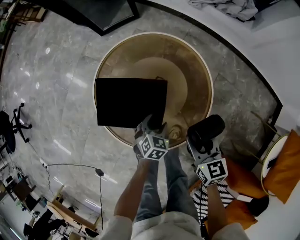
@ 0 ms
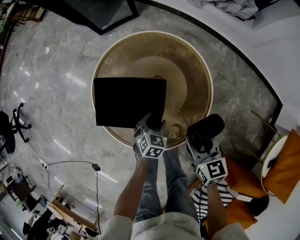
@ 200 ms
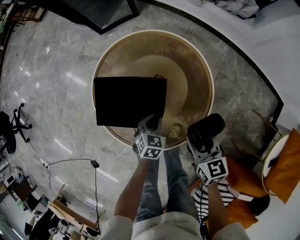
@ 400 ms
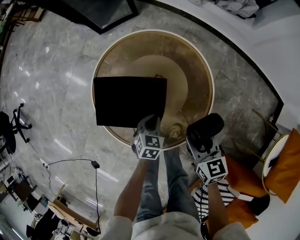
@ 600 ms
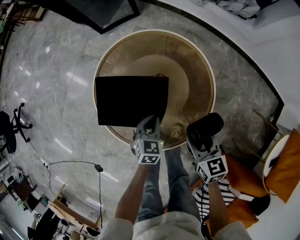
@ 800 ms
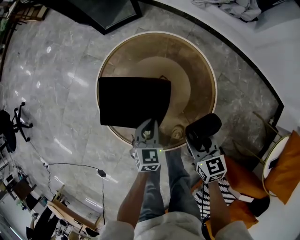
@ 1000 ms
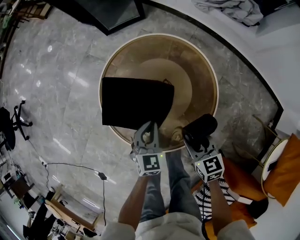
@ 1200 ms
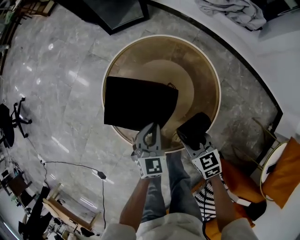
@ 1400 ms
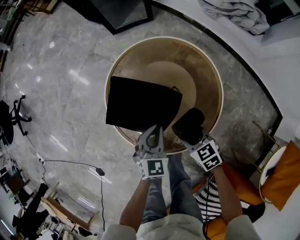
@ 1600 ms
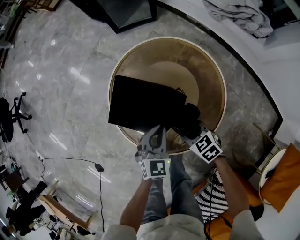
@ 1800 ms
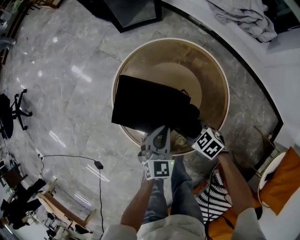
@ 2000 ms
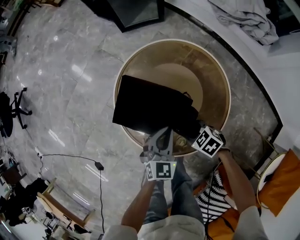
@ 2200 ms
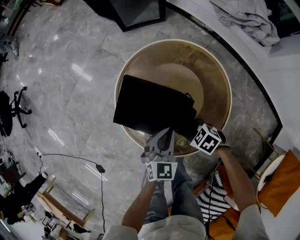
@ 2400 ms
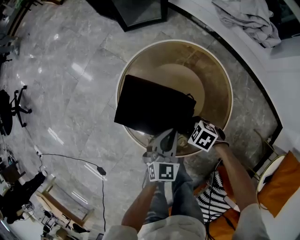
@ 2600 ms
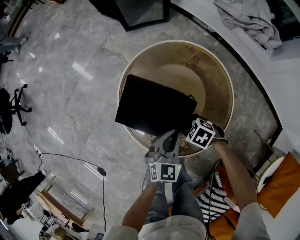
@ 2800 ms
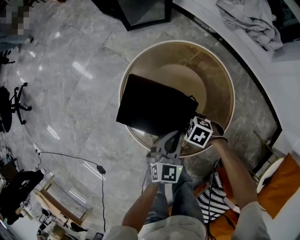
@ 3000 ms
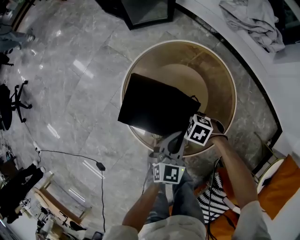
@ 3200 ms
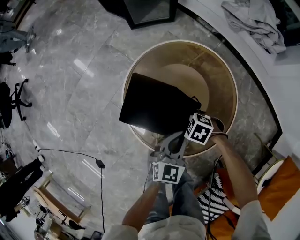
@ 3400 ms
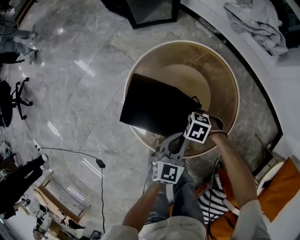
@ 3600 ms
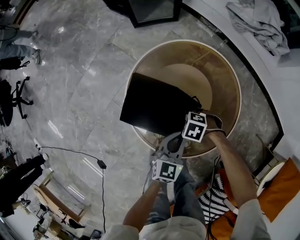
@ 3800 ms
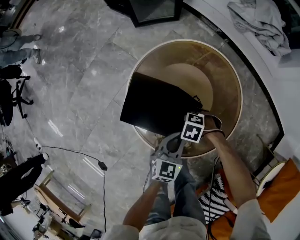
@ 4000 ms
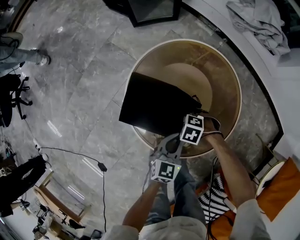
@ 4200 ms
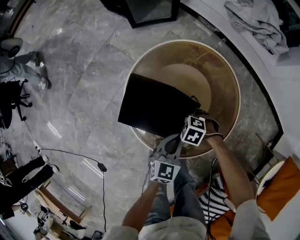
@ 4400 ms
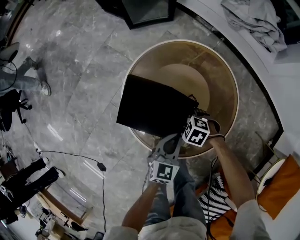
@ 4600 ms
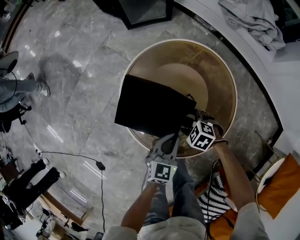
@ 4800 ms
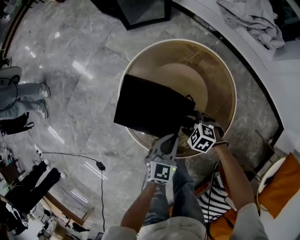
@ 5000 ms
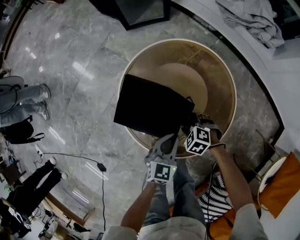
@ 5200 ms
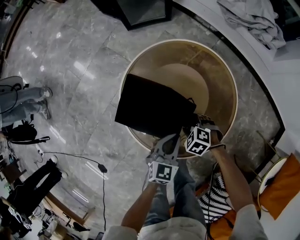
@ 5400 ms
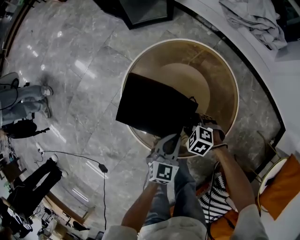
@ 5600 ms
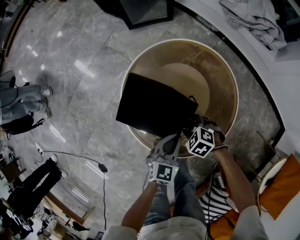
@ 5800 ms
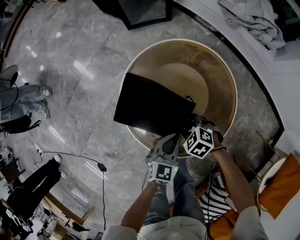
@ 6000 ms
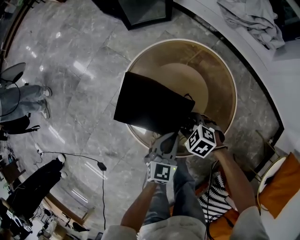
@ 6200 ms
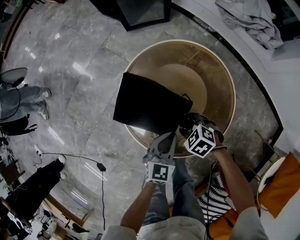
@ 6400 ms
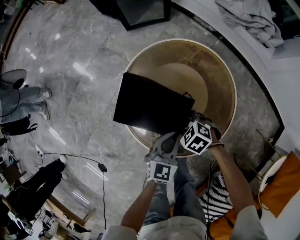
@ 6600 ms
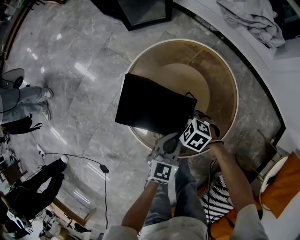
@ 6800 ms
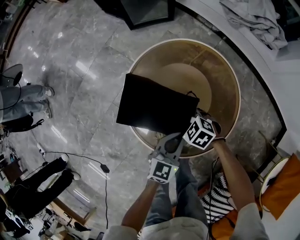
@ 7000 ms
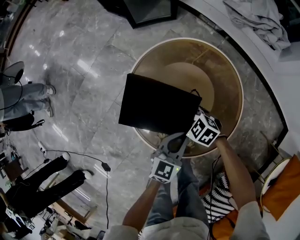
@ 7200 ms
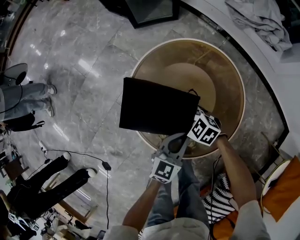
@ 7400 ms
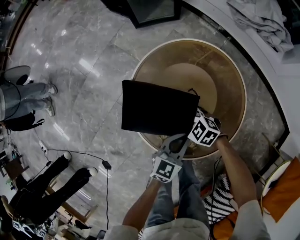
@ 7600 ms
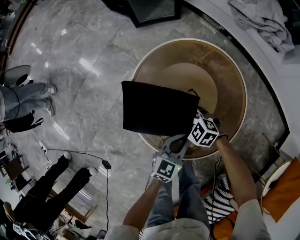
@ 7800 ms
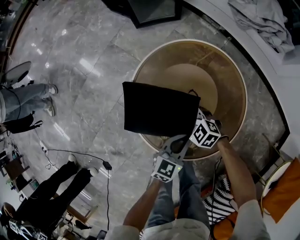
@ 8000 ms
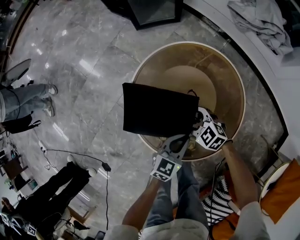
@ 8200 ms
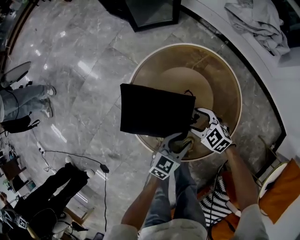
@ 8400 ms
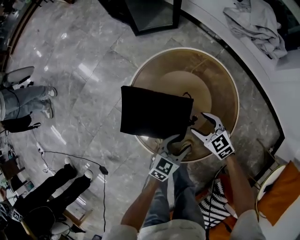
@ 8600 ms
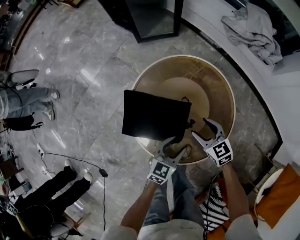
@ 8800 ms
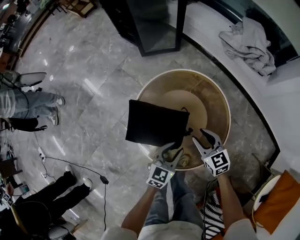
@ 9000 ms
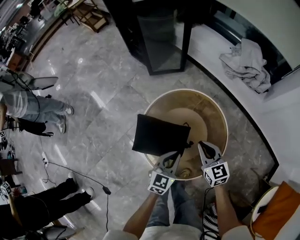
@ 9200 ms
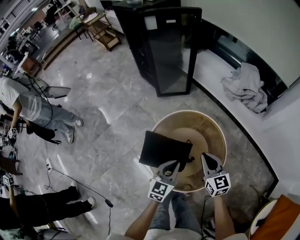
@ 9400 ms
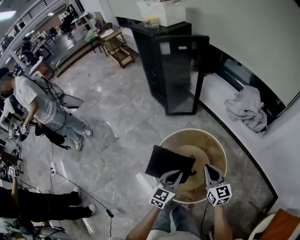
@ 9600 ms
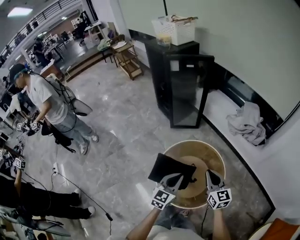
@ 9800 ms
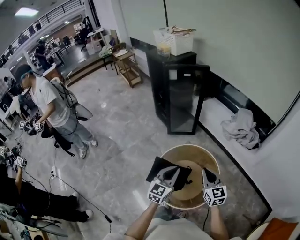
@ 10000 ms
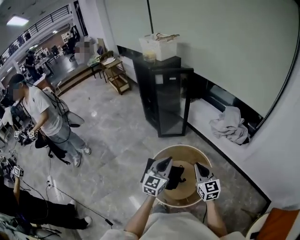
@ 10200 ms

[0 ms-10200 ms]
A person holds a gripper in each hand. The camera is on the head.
0 ms to 1400 ms: The left gripper travels upward and to the left by about 15 cm, turns by about 30 degrees, and closes its fingers. Meanwhile the right gripper is displaced to the left by about 5 cm, and rotates roughly 20 degrees.
1400 ms to 3000 ms: The right gripper moves about 15 cm, and changes its angle by approximately 50 degrees.
3000 ms to 4400 ms: The right gripper changes place by roughly 5 cm.
4400 ms to 5800 ms: The grippers move only a little.
5800 ms to 7200 ms: The right gripper goes some 5 cm forward.
7200 ms to 8800 ms: The right gripper shifts roughly 10 cm to the right and upward, and turns by some 30 degrees. Meanwhile the left gripper opens.
8800 ms to 10200 ms: Both grippers move upward, roughly 40 cm. The left gripper rotates about 40 degrees, and closes up. Meanwhile the right gripper rotates approximately 30 degrees, and closes up.

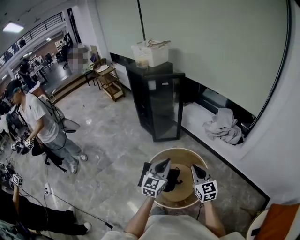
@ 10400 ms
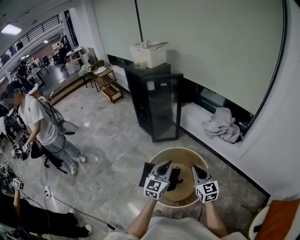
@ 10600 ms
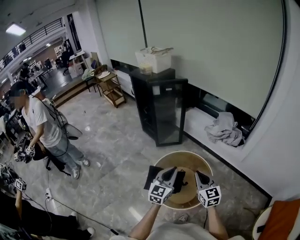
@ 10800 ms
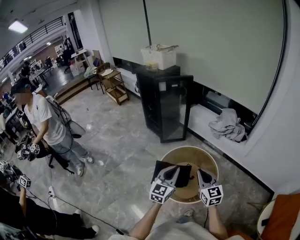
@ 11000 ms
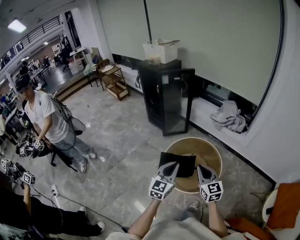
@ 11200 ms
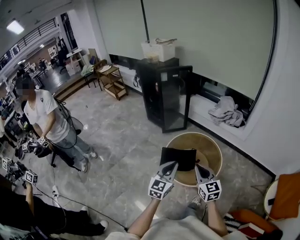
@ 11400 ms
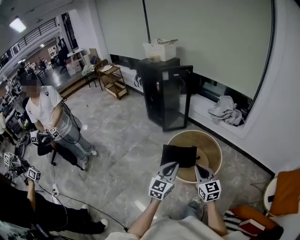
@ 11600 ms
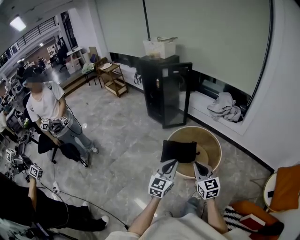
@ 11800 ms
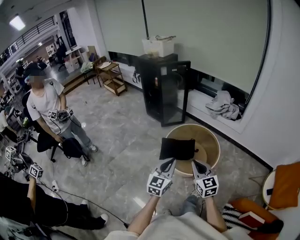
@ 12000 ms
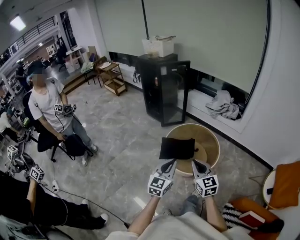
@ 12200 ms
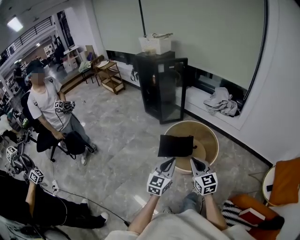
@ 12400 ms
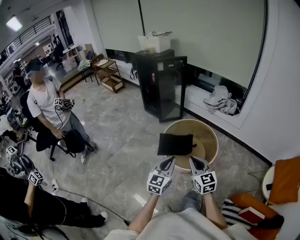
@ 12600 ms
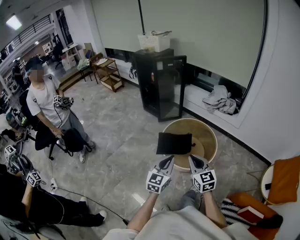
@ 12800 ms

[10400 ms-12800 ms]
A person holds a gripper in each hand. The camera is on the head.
10400 ms to 11600 ms: Both grippers move backward and to the left, approximately 30 cm.
11600 ms to 12800 ms: The left gripper is displaced backward by roughly 5 cm.

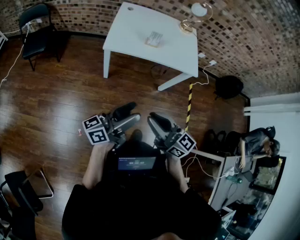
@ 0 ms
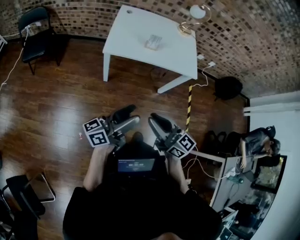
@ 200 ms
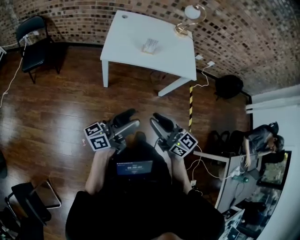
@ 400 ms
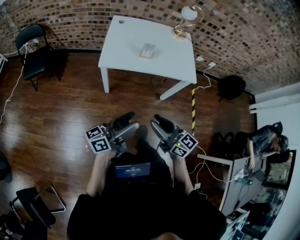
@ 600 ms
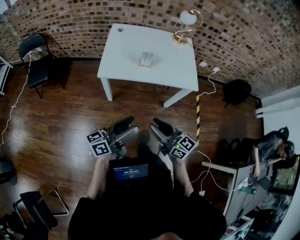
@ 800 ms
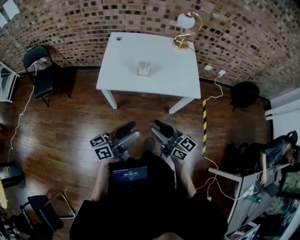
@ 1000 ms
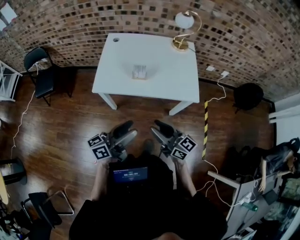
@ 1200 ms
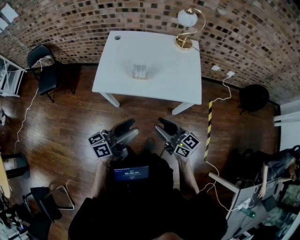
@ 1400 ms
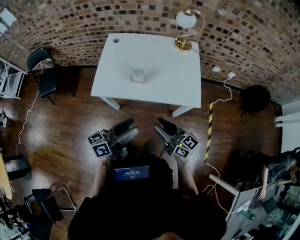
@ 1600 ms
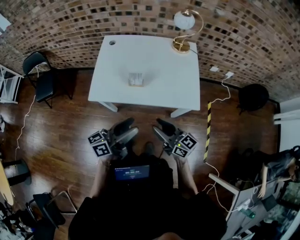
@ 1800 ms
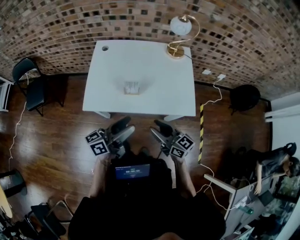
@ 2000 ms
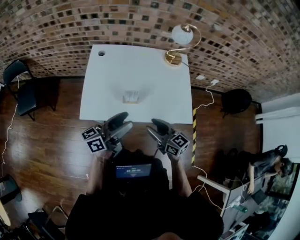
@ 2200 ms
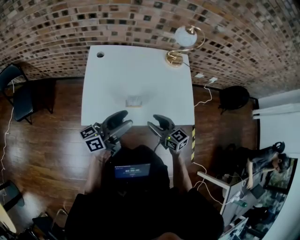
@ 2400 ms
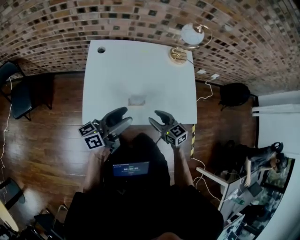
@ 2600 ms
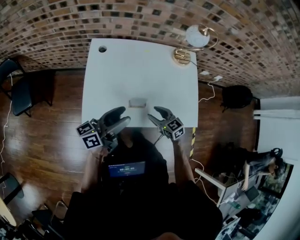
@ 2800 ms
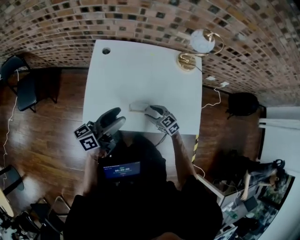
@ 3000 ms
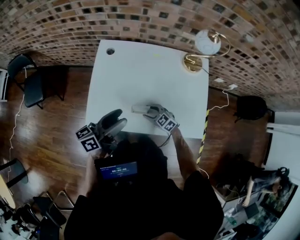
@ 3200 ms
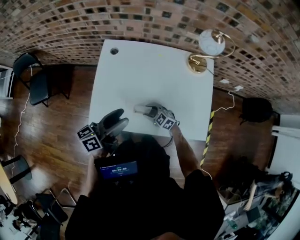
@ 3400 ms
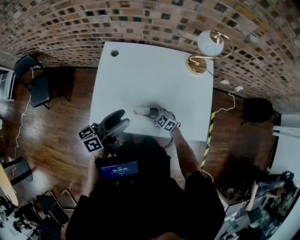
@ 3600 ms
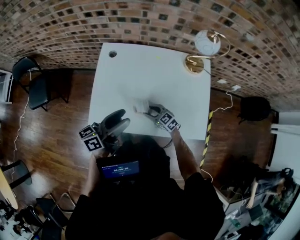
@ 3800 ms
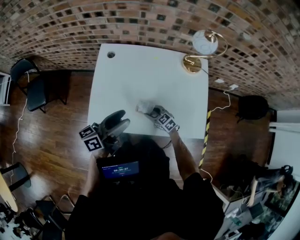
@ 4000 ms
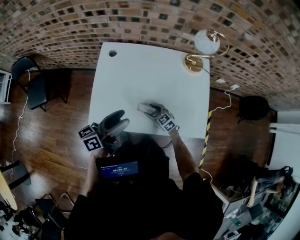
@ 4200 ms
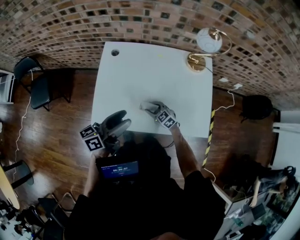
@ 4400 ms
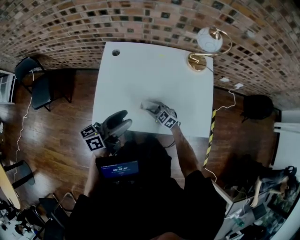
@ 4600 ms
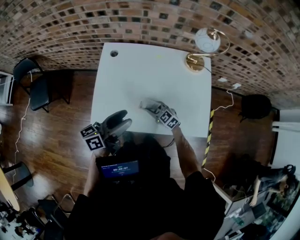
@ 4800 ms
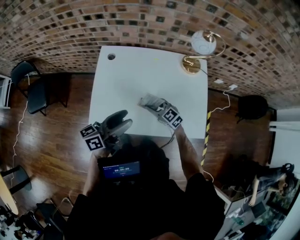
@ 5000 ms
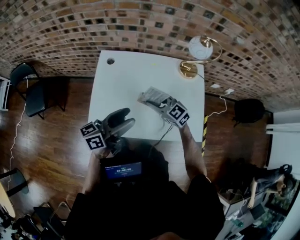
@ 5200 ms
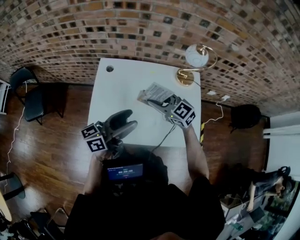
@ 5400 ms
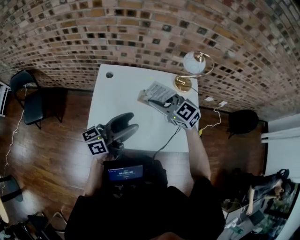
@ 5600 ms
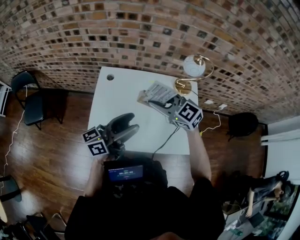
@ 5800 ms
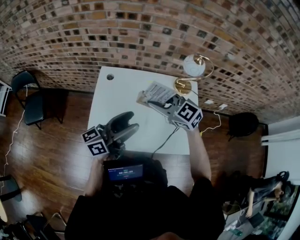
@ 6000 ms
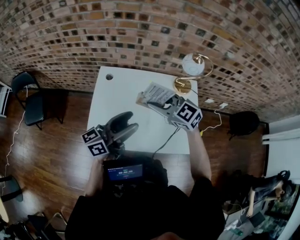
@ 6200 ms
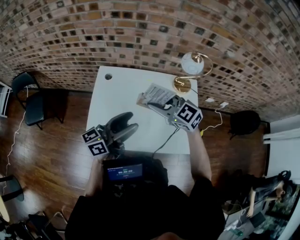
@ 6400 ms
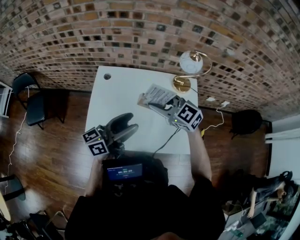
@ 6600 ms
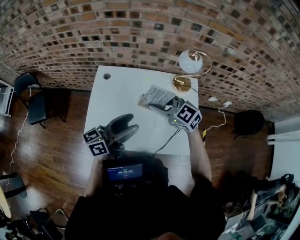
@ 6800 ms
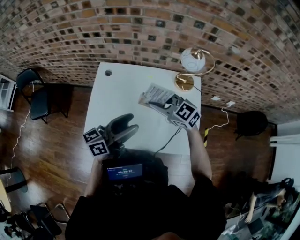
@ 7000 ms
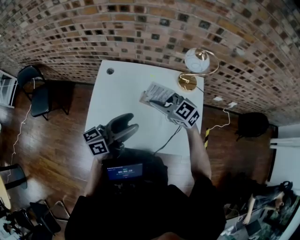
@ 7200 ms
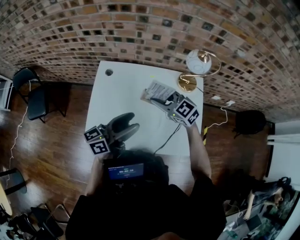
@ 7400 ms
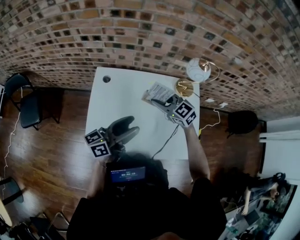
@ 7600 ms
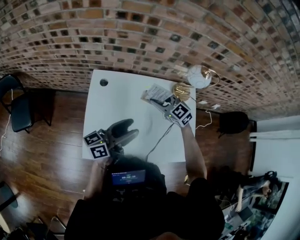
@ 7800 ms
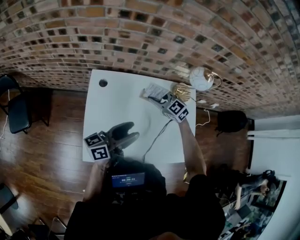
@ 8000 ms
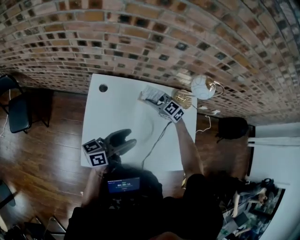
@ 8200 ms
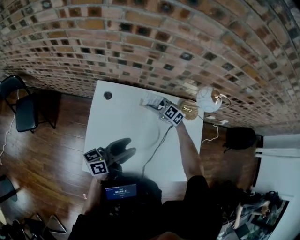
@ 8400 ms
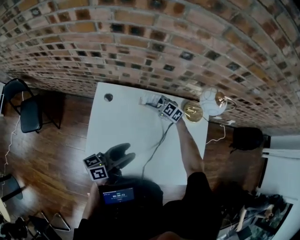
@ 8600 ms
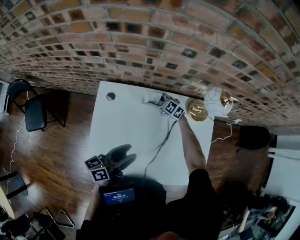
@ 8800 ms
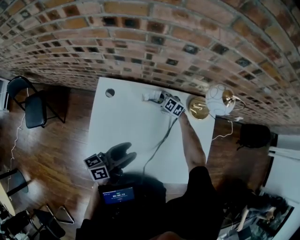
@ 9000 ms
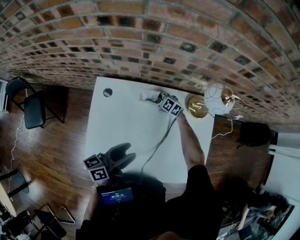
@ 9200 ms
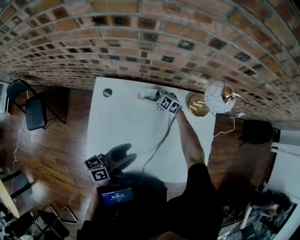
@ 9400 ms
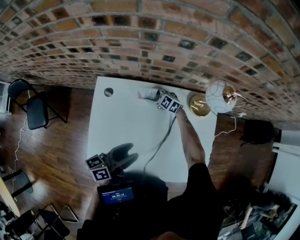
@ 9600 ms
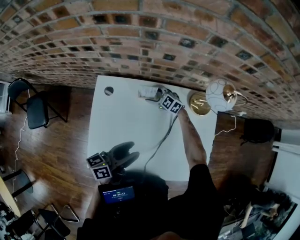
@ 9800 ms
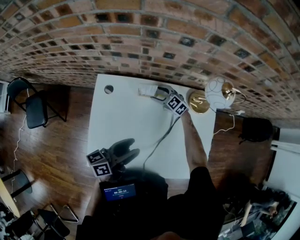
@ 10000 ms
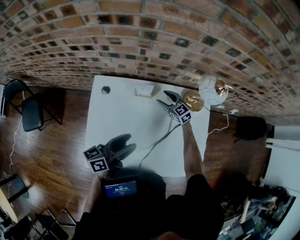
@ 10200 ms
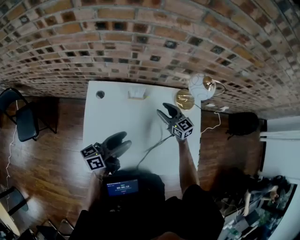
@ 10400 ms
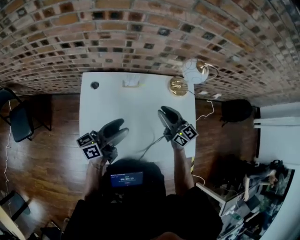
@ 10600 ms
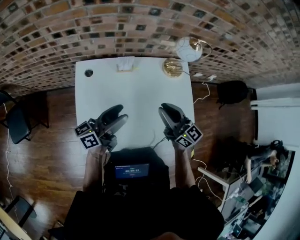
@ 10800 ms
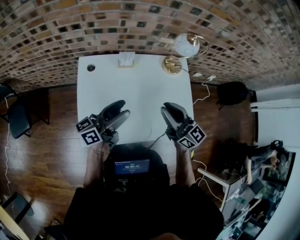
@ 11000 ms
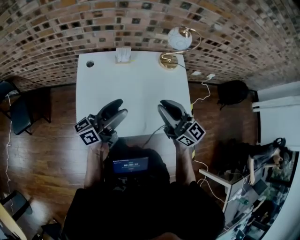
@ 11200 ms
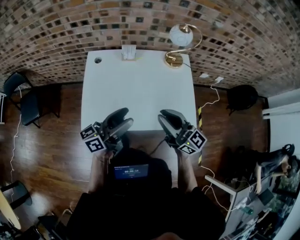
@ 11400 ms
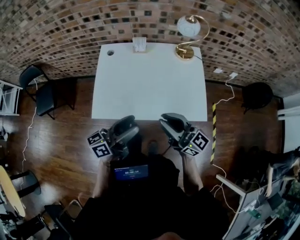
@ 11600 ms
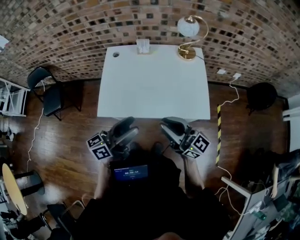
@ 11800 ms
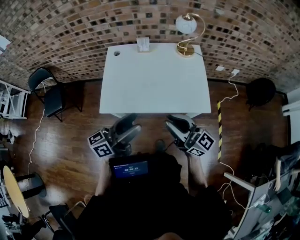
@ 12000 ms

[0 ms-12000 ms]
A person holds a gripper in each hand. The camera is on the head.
0 ms to 1600 ms: The two grippers go about 30 cm forward and to the right.
1600 ms to 3000 ms: The left gripper is displaced forward and to the left by approximately 30 cm, while the right gripper shifts some 35 cm forward and downward, and tips its fingers downward by some 40 degrees.
3000 ms to 4400 ms: The right gripper heads downward, covering about 5 cm.
4400 ms to 6000 ms: The left gripper is displaced upward by roughly 10 cm; the right gripper heads upward, covering roughly 40 cm.
6000 ms to 7600 ms: The left gripper goes about 10 cm downward and forward, while the right gripper heads downward and forward, covering roughly 15 cm.
7600 ms to 9000 ms: The right gripper is displaced downward and forward by approximately 30 cm. The left gripper shifts approximately 10 cm downward and forward.
9000 ms to 10400 ms: The right gripper goes roughly 20 cm upward, backward and to the right, rotates some 40 degrees, and opens.
10400 ms to 12000 ms: The right gripper moves backward and upward, about 50 cm, angles its fingers upward, by about 30 degrees, and closes, while the left gripper heads backward, covering about 35 cm.
